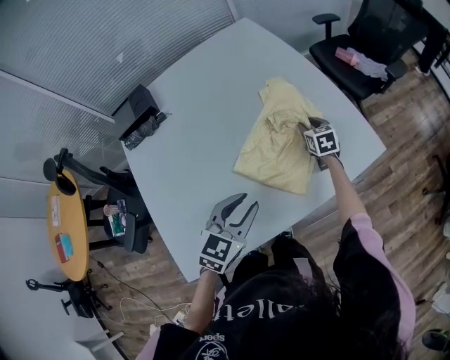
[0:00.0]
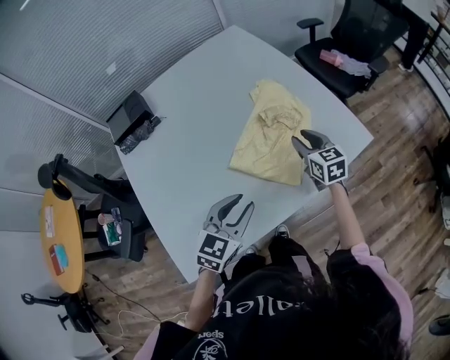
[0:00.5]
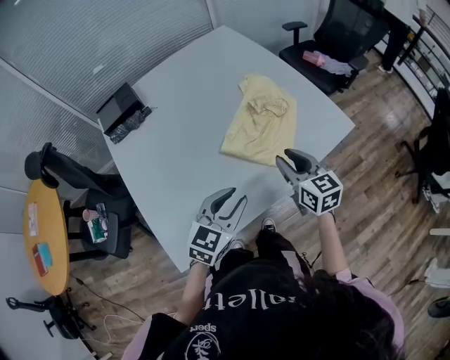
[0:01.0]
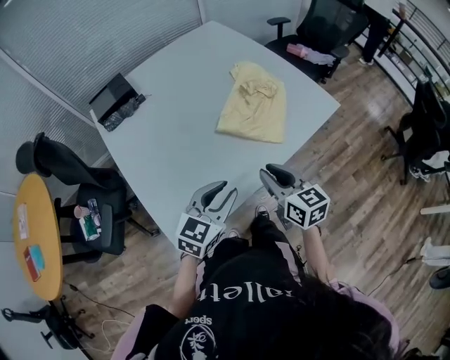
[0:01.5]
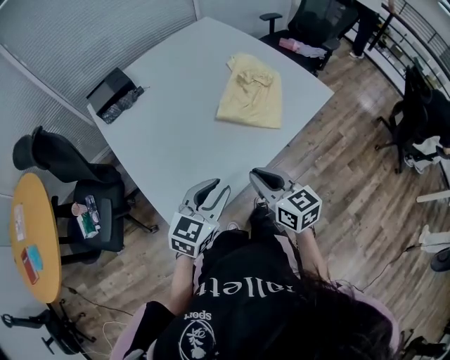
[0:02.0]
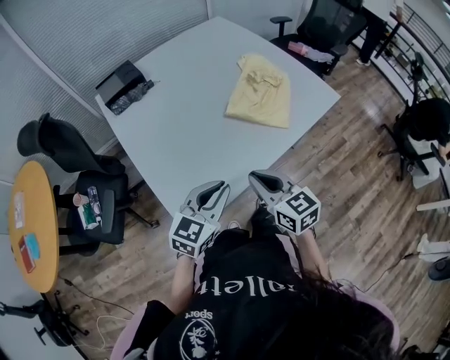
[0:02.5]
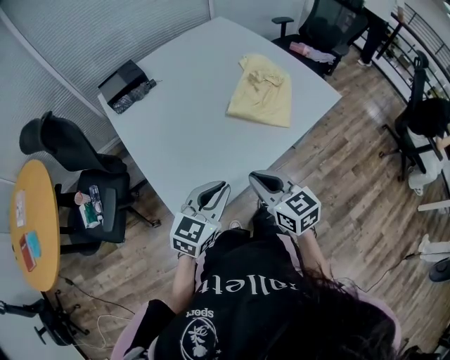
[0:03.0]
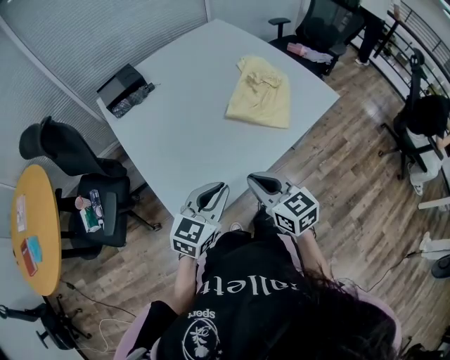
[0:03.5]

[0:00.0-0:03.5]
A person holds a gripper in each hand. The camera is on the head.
0:00.0 to 0:02.0: The left gripper moves backward and to the left, approximately 25 cm. Meanwhile the right gripper is displaced backward and upward by approximately 50 cm, turns by roughly 20 degrees, and closes up.
0:02.0 to 0:03.5: The right gripper moves roughly 5 cm.

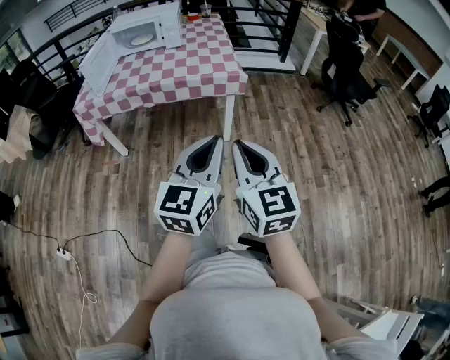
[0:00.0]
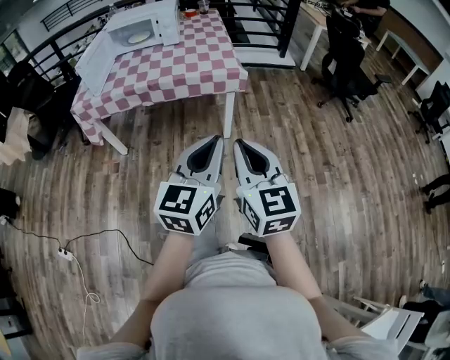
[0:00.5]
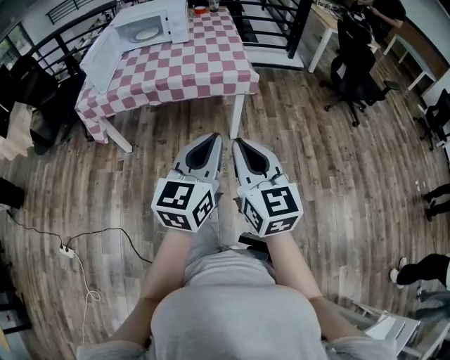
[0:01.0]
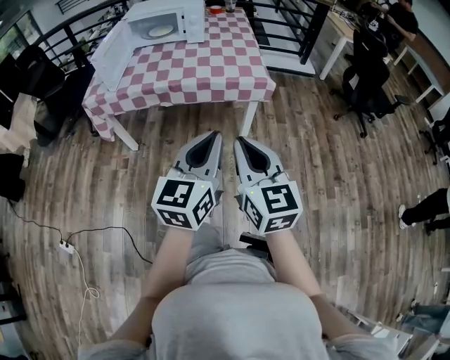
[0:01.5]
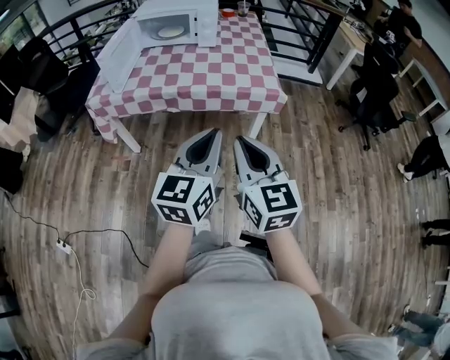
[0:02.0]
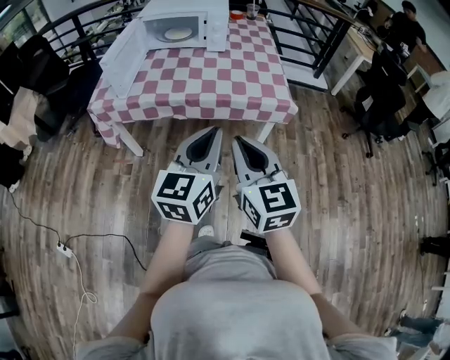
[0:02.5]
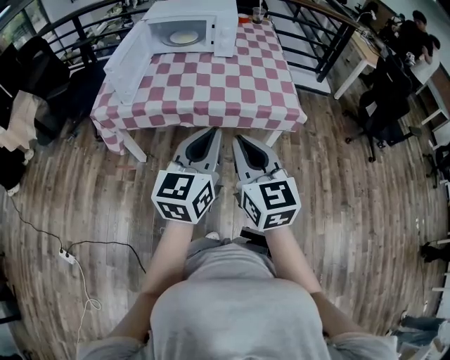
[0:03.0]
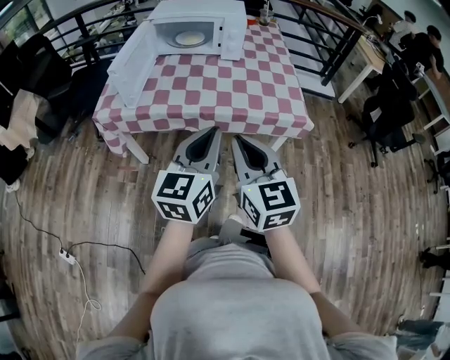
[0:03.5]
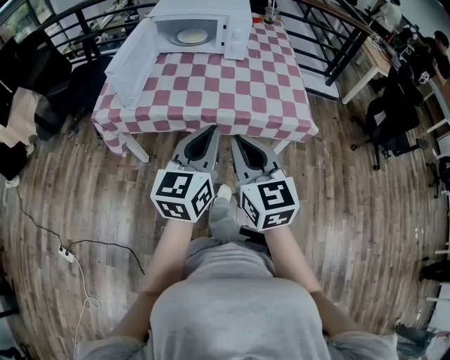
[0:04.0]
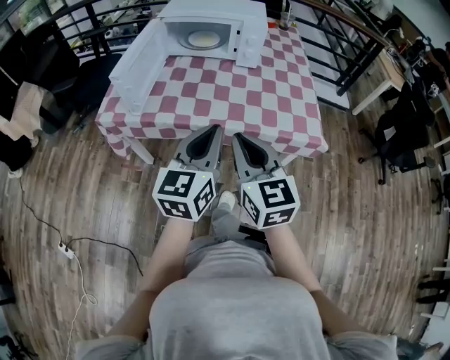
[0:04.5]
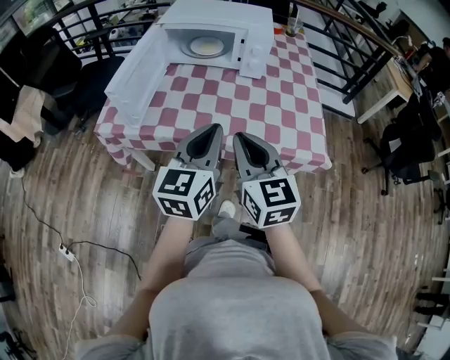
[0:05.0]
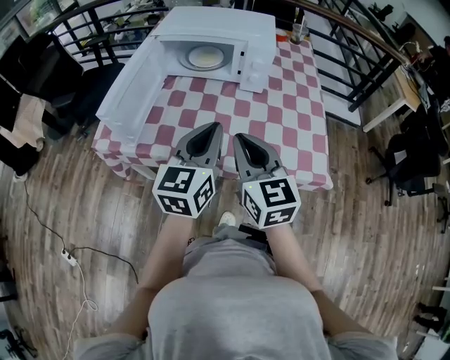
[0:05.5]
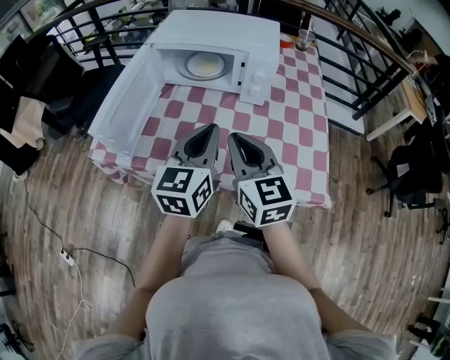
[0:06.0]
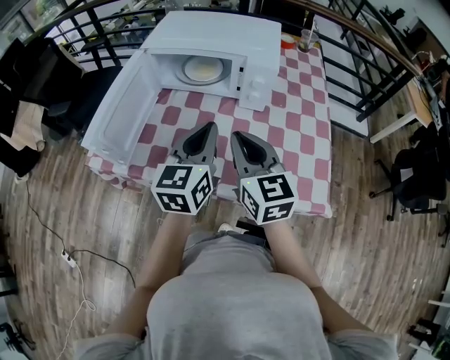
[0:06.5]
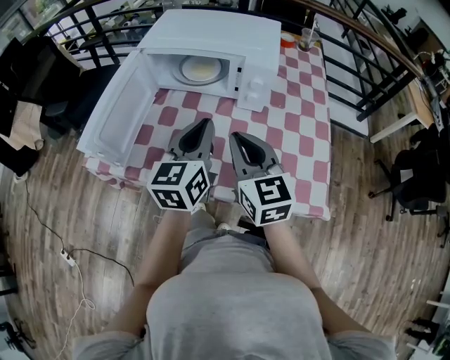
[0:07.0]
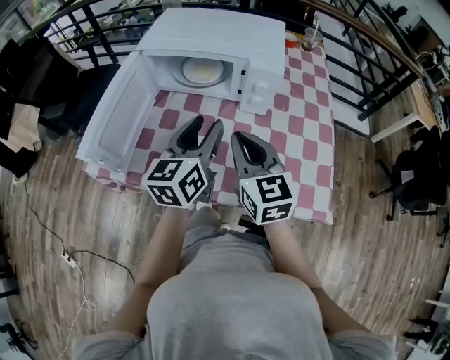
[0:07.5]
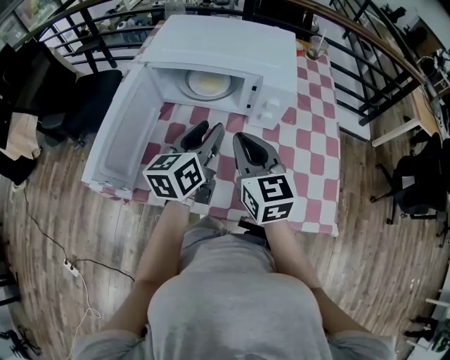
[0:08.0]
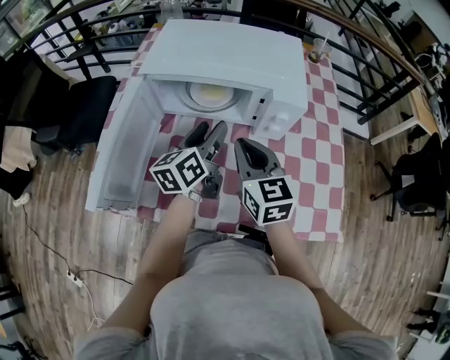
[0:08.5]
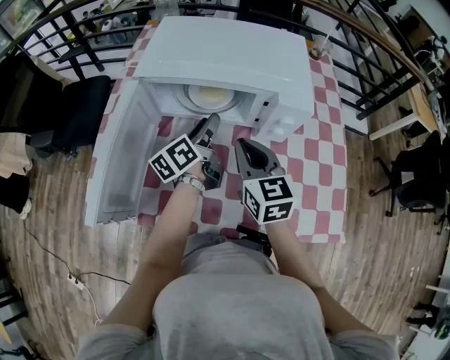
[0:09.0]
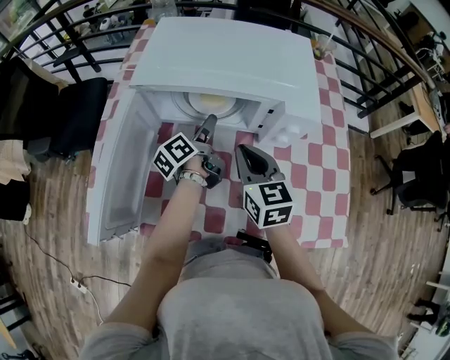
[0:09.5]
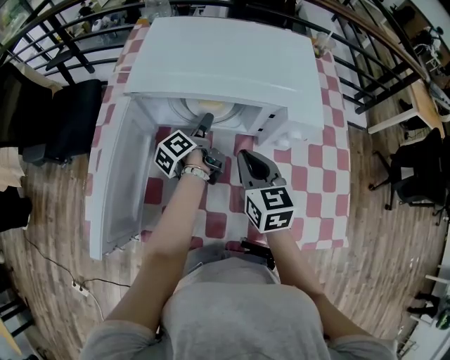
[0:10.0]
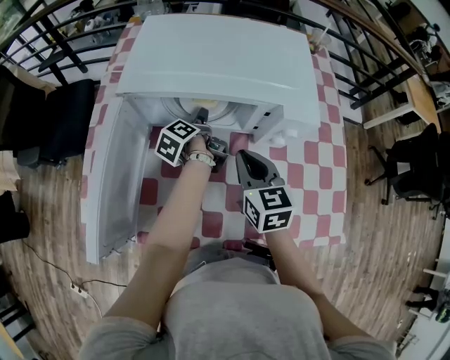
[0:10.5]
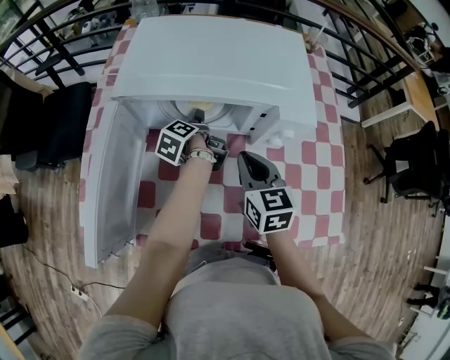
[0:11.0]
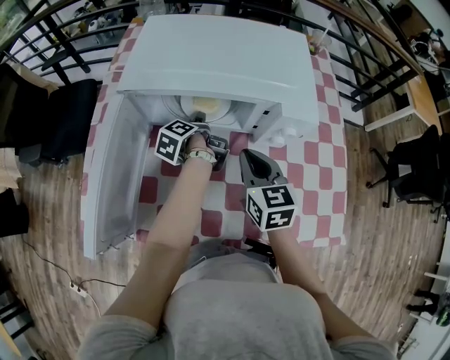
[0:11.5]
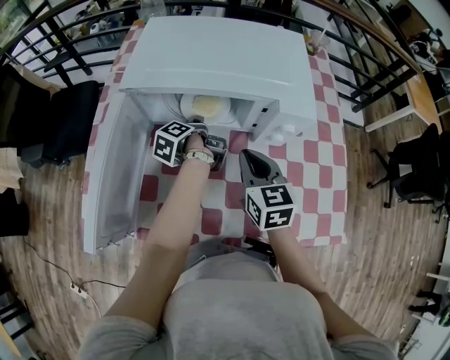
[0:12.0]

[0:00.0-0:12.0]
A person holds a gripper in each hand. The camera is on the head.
0:00.0 to 0:02.0: Both grippers travel together forward and to the left, about 20 cm.
0:02.0 to 0:04.0: The grippers both shift forward and to the left by approximately 20 cm.
0:04.0 to 0:06.0: Both grippers travel together forward, roughly 30 cm.
0:06.0 to 0:08.0: Both grippers move forward, about 15 cm. The left gripper opens.
0:08.0 to 0:10.0: The right gripper heads forward and downward, covering about 15 cm, while the left gripper is displaced forward and downward by approximately 25 cm, rolls counterclockwise, seen from behind, by about 50 degrees, and opens.
0:10.0 to 0:12.0: The left gripper closes up.

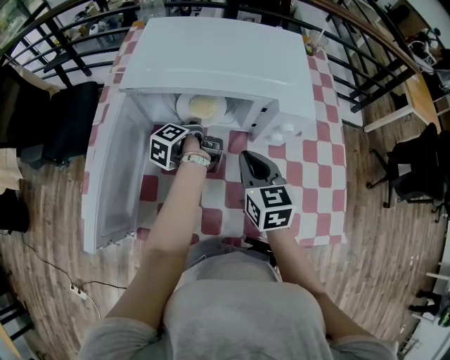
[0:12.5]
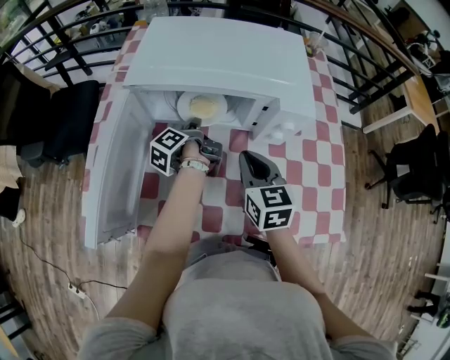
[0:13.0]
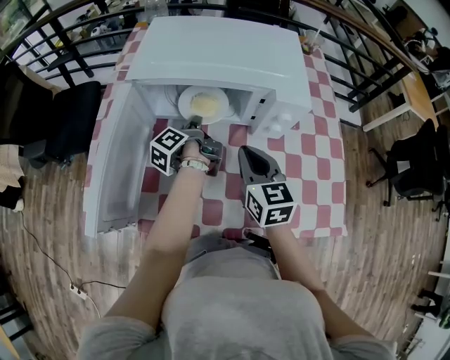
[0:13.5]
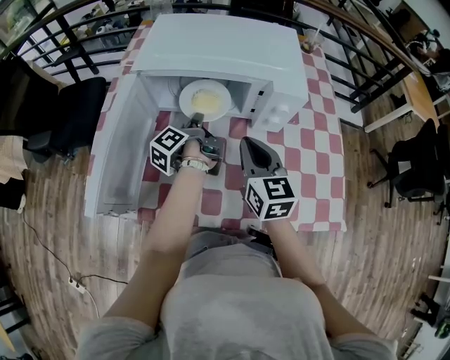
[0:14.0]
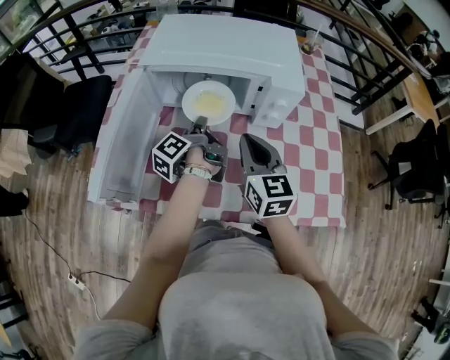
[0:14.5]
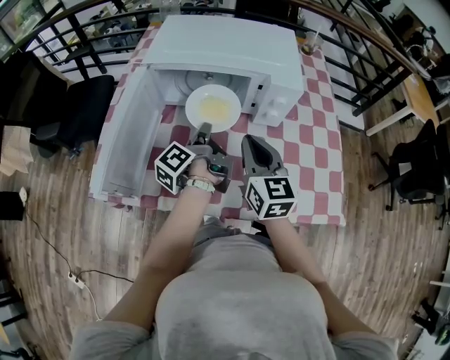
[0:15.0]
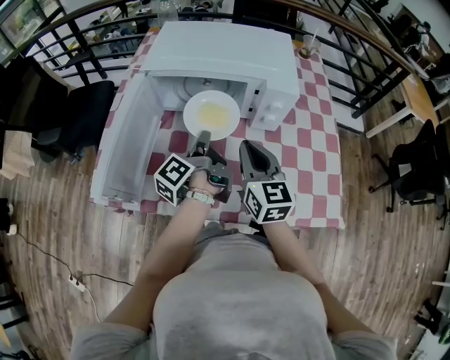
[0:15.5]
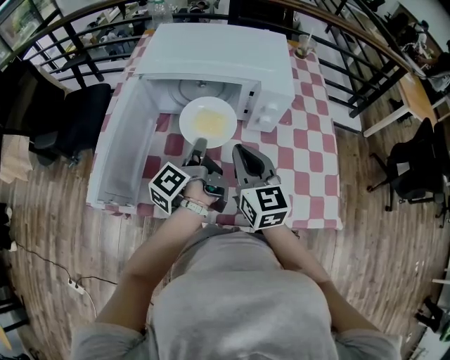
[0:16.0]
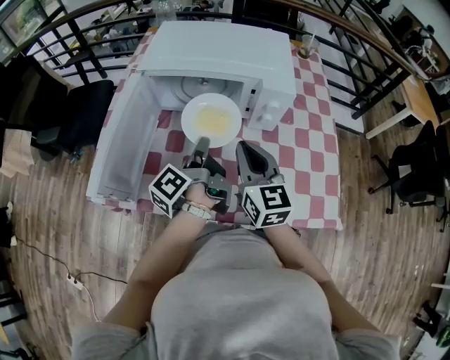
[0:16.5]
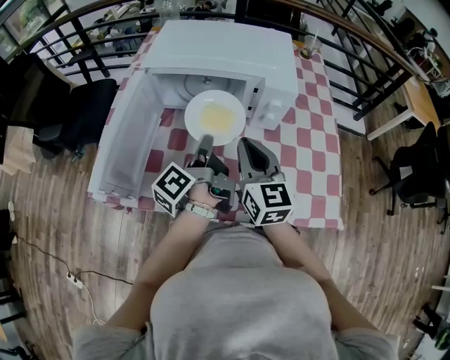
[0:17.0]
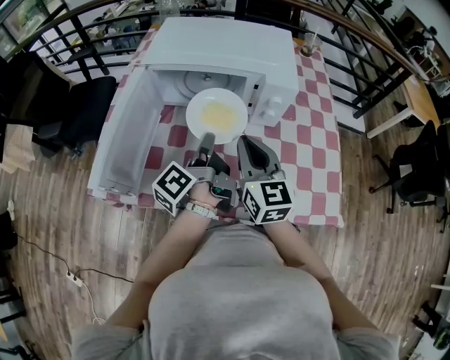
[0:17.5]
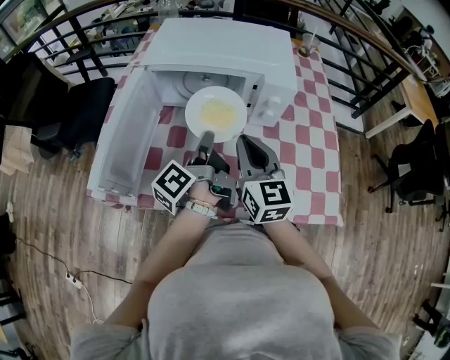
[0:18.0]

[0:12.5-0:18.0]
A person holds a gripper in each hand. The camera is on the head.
0:12.5 to 0:14.5: The right gripper goes roughly 10 cm upward and backward. The left gripper goes about 15 cm backward and upward.
0:14.5 to 0:16.0: The left gripper travels backward by roughly 5 cm.
0:16.0 to 0:18.0: The grippers make only small movements.

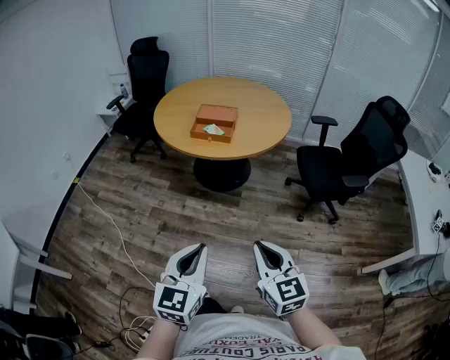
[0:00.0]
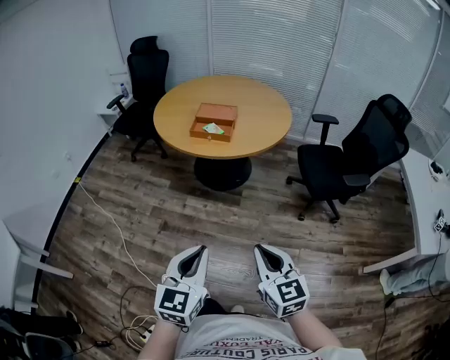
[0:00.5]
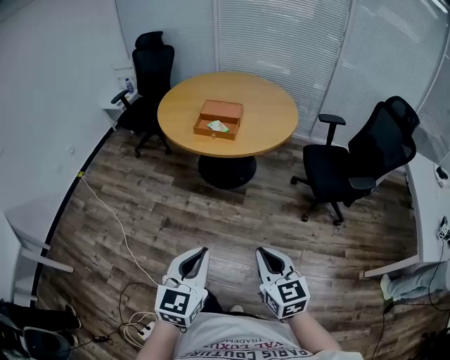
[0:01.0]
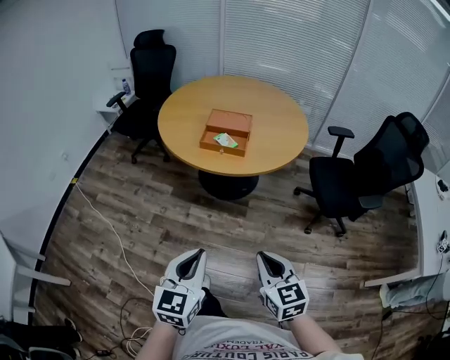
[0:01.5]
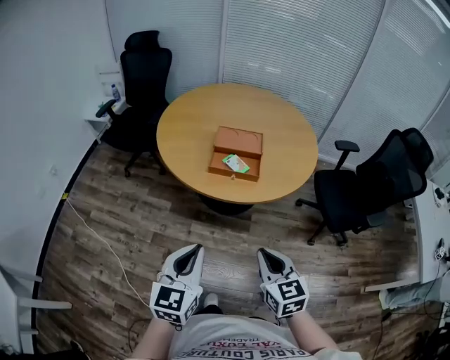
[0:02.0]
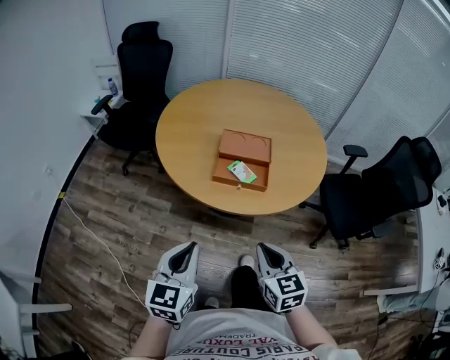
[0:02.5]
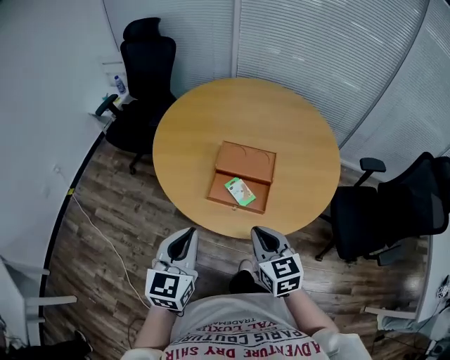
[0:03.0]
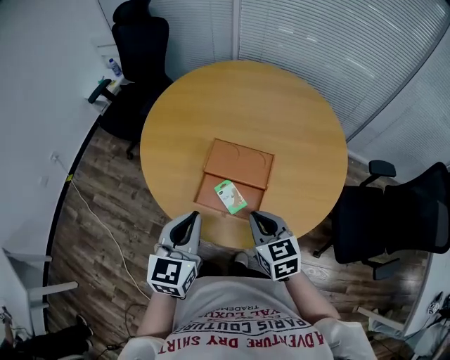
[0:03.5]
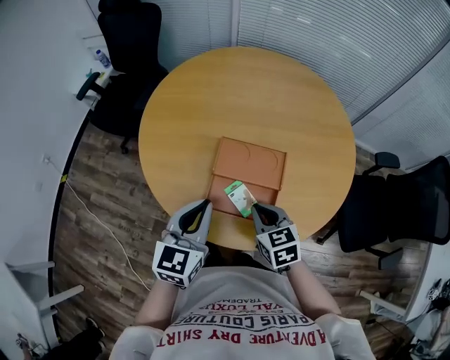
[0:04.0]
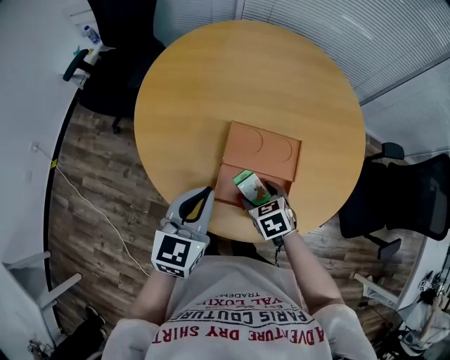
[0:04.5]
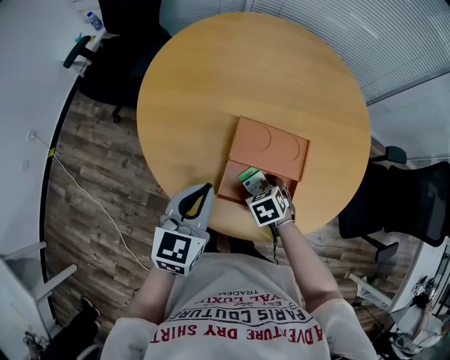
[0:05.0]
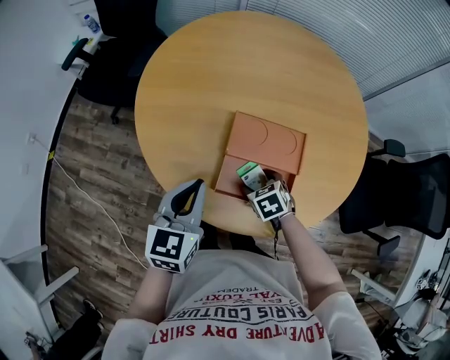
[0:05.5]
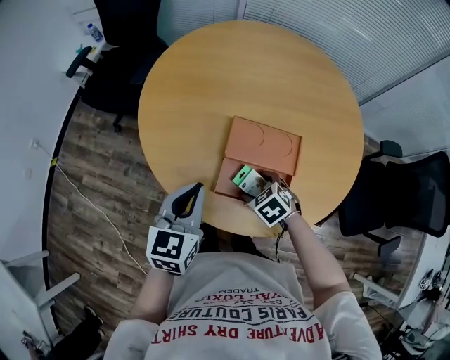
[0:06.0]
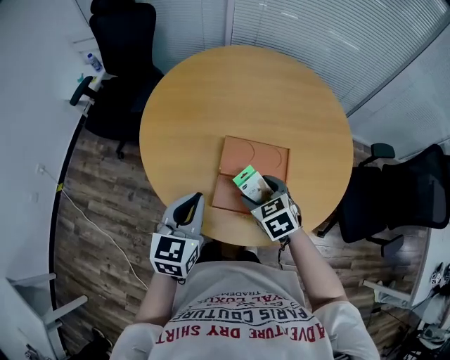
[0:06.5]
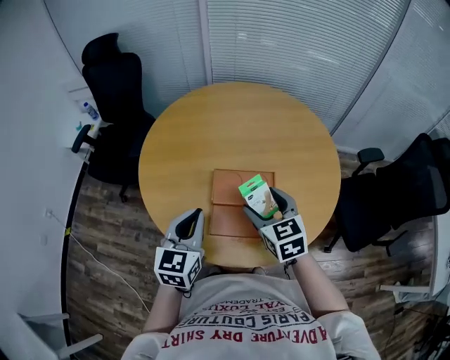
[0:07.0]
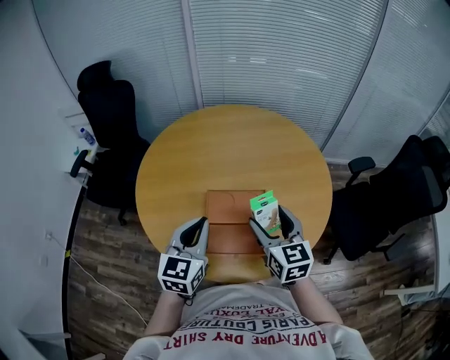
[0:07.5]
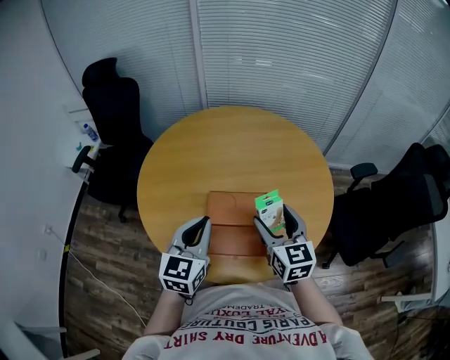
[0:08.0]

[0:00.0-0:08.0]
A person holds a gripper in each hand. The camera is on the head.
0:00.0 to 0:02.0: The two grippers go about 35 cm forward and to the left.
0:02.0 to 0:04.0: The two grippers travel together, forward, about 40 cm. The right gripper swivels approximately 20 degrees.
0:04.0 to 0:06.0: The right gripper heads downward, covering some 10 cm, rotates roughly 30 degrees, and opens its fingers. Meanwhile the left gripper shifts some 5 cm to the left.
0:06.0 to 0:08.0: The right gripper moves upward, roughly 25 cm, and tilts its fingers about 50 degrees upward, while the left gripper shifts roughly 15 cm upward and to the right.
